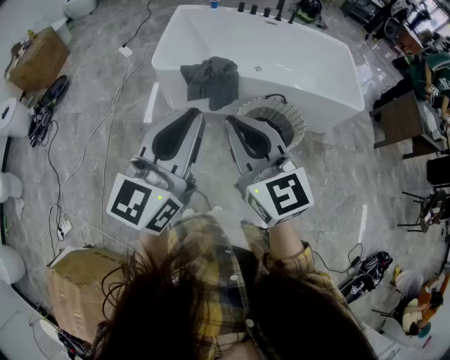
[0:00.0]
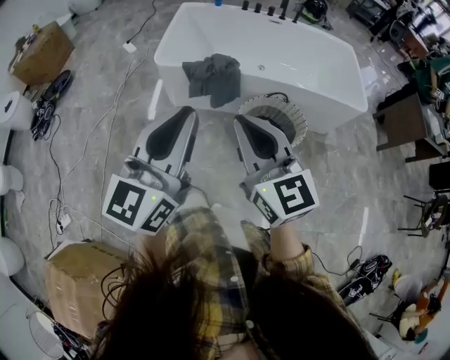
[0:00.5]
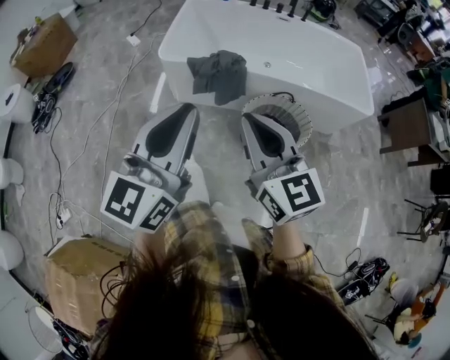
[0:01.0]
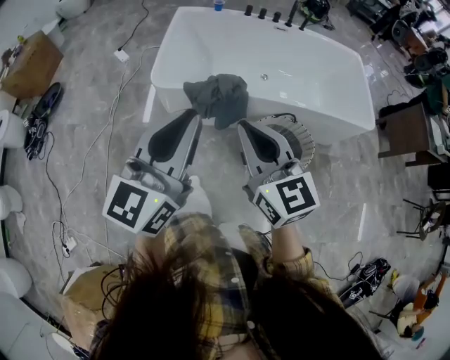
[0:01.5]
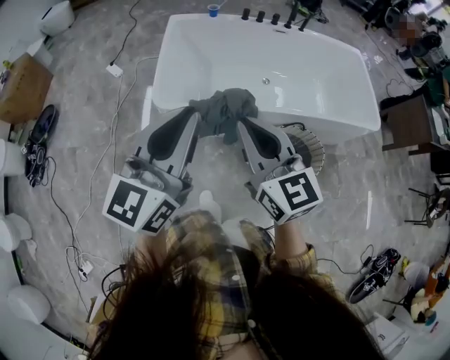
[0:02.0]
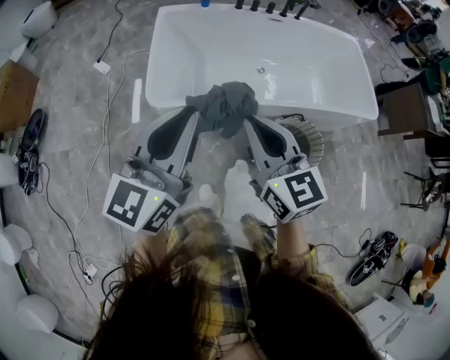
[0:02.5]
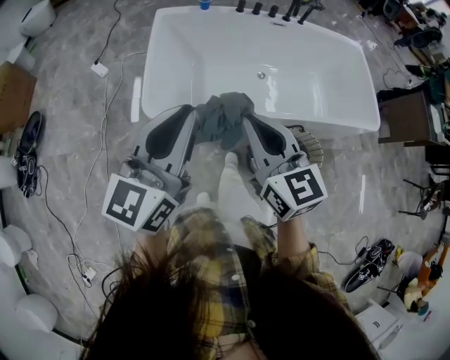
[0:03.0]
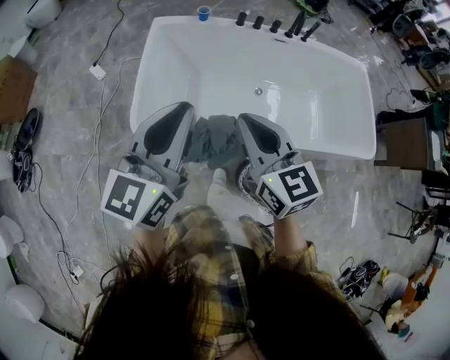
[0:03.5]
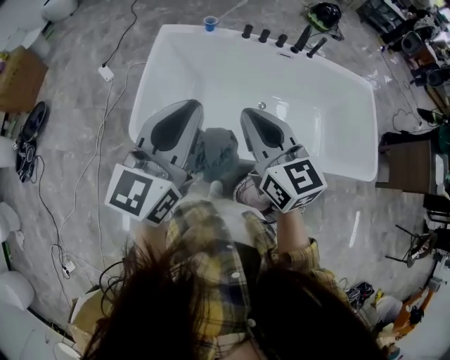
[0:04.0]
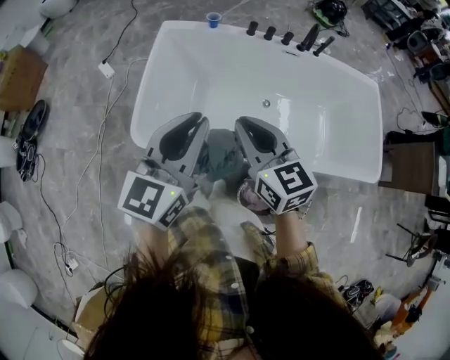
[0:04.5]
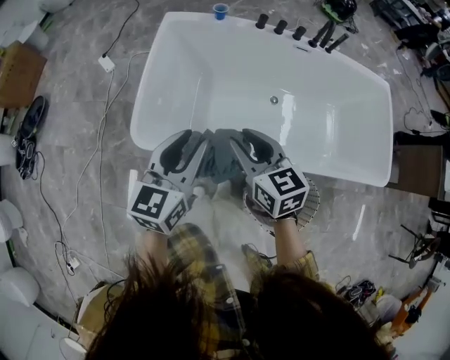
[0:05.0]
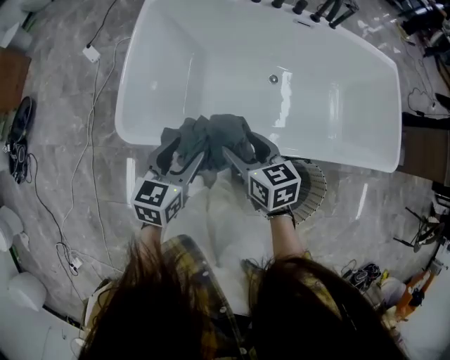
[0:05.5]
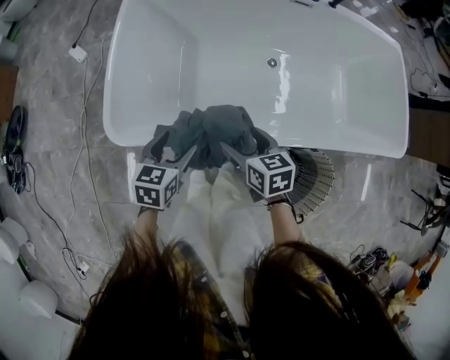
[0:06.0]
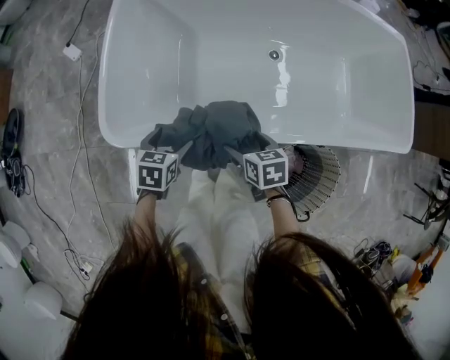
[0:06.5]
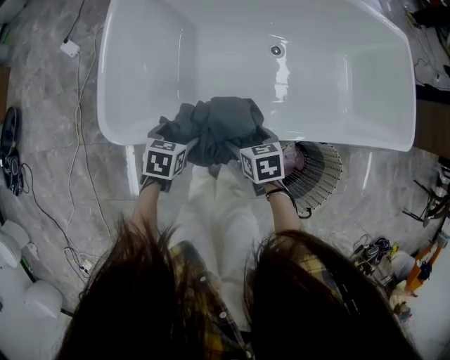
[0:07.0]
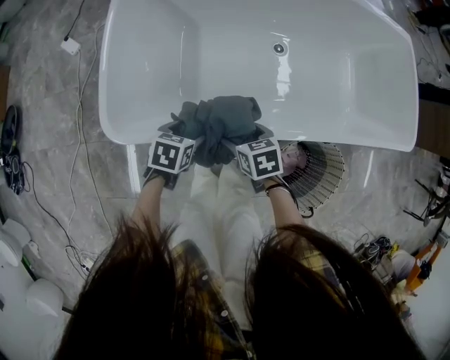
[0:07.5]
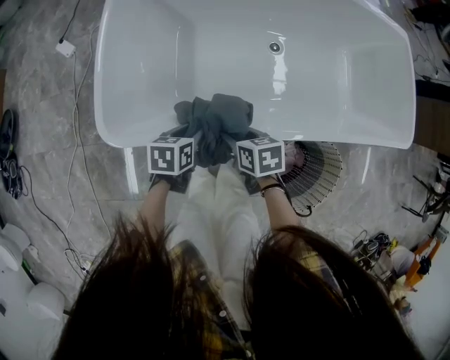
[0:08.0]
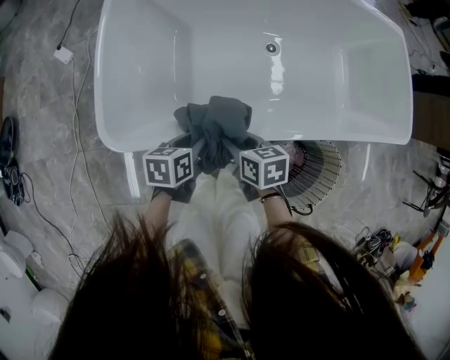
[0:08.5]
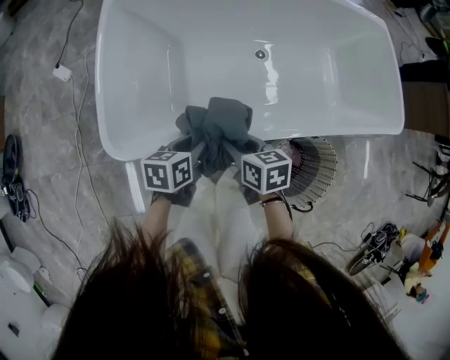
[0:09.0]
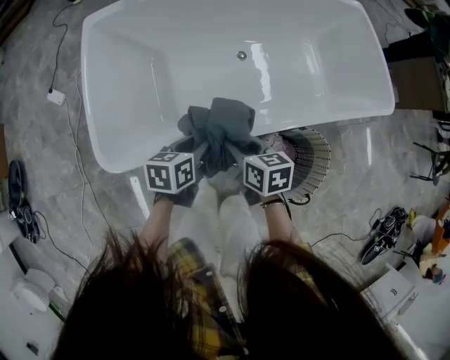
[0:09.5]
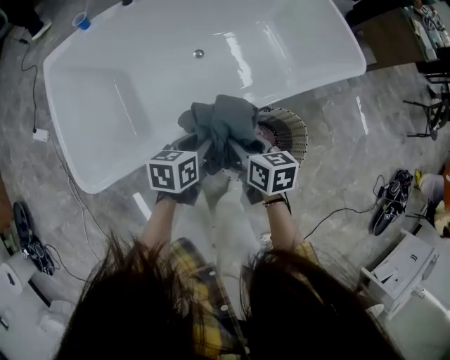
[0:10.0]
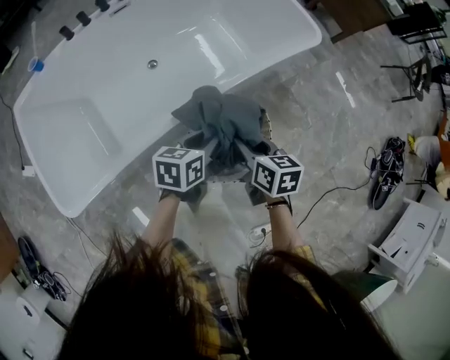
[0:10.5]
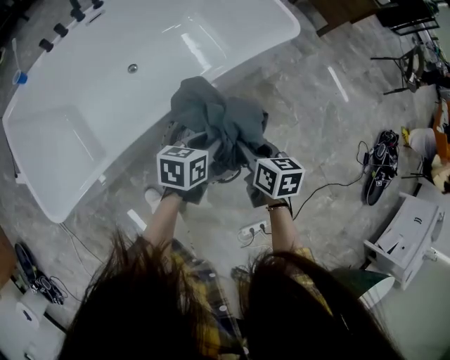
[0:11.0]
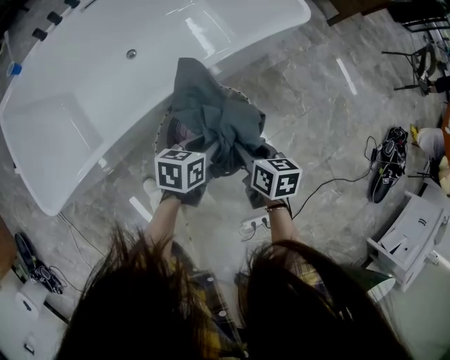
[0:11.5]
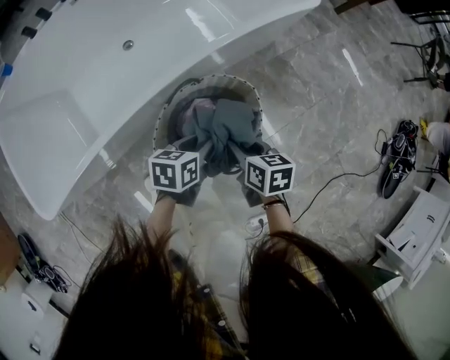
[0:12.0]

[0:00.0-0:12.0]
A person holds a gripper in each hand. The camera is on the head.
0:00.0 to 0:02.0: Both grippers move forward, roughly 30 cm.
0:02.0 to 0:04.0: The grippers both shift forward by approximately 25 cm.
0:04.0 to 0:06.0: Both grippers move downward, roughly 40 cm. The left gripper tilts its fingers roughly 50 degrees downward, and opens up. Meanwhile the right gripper tips its fingers downward by about 30 degrees, and opens up.
0:06.0 to 0:08.0: Both grippers move downward, about 10 cm. The right gripper closes up; the left gripper turns by approximately 20 degrees, and closes up.
0:08.0 to 0:10.0: The right gripper changes place by about 25 cm, and rotates approximately 30 degrees. The left gripper shifts by about 25 cm, and rotates some 30 degrees.
0:10.0 to 0:12.0: Both grippers move to the right and downward, some 30 cm.

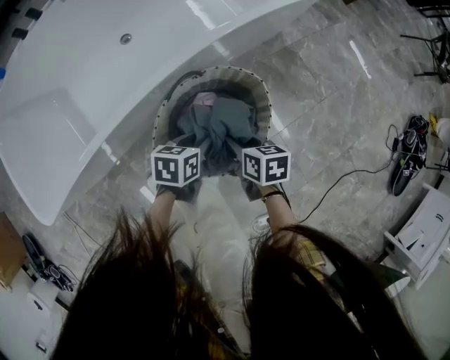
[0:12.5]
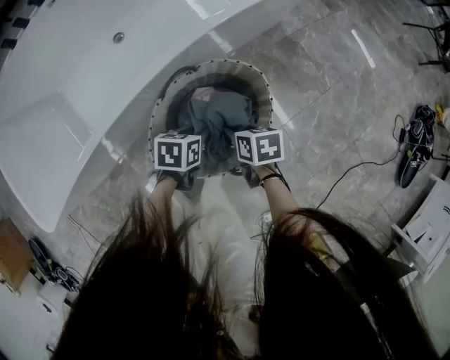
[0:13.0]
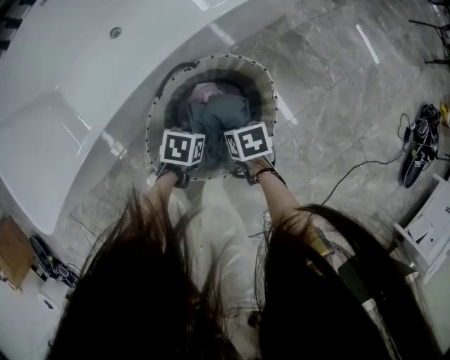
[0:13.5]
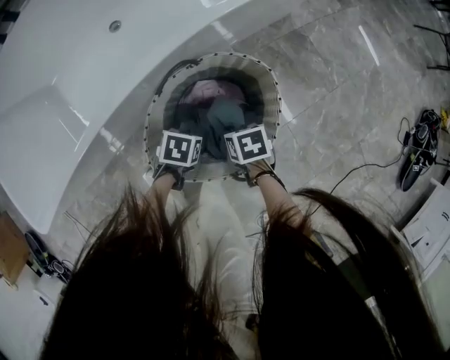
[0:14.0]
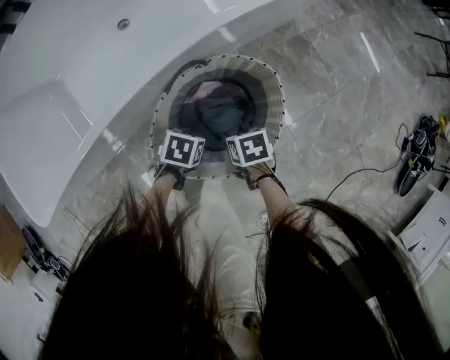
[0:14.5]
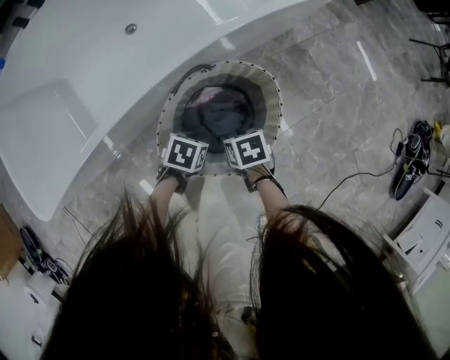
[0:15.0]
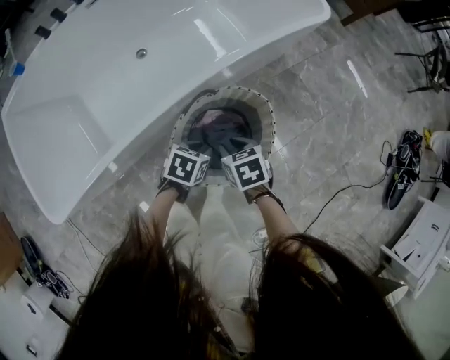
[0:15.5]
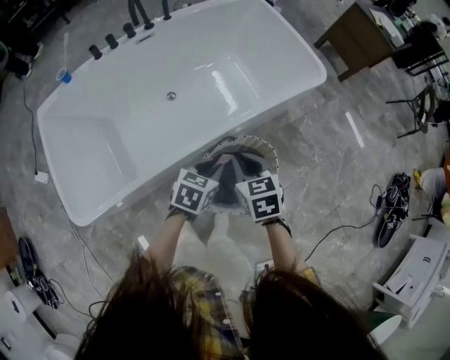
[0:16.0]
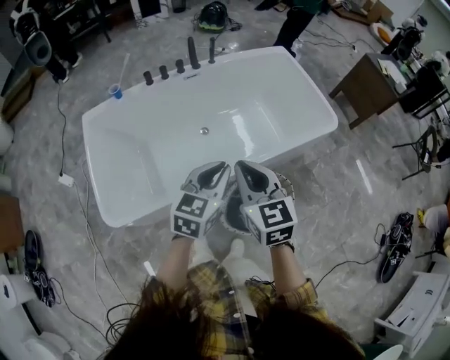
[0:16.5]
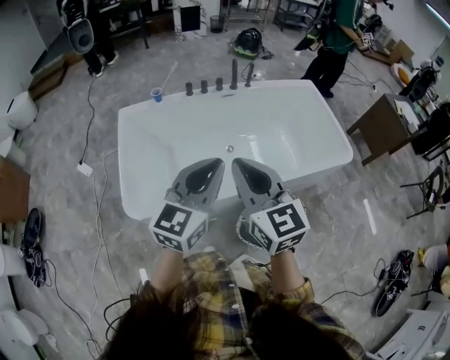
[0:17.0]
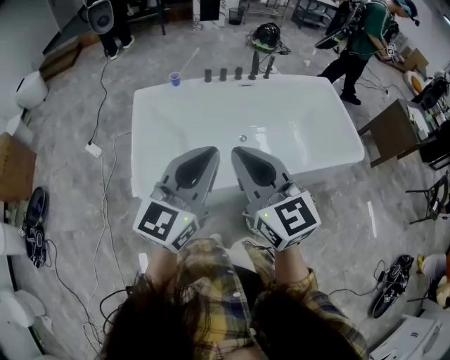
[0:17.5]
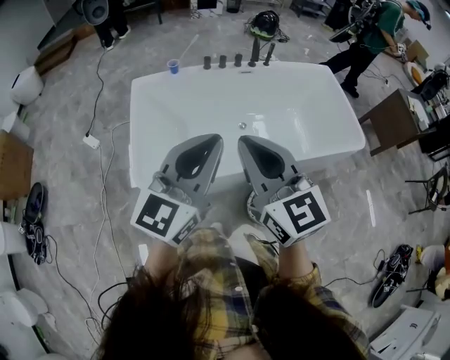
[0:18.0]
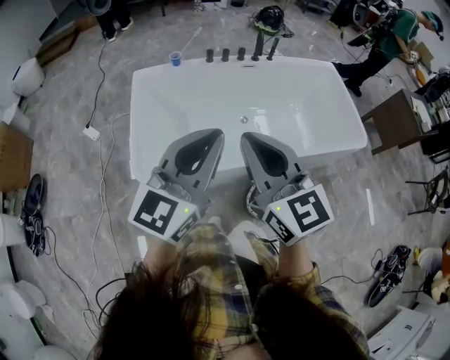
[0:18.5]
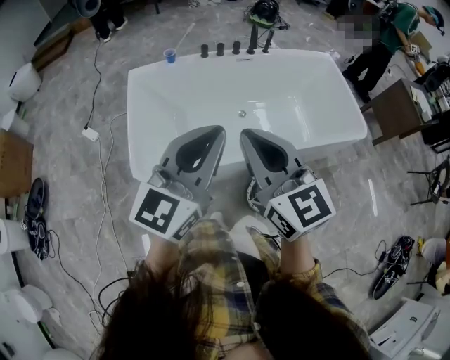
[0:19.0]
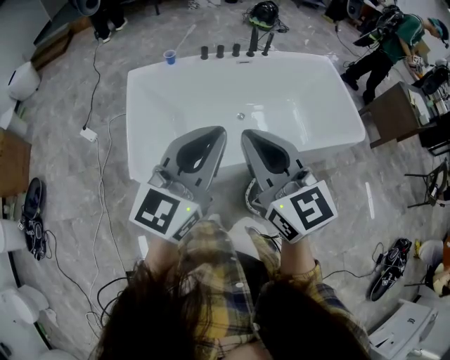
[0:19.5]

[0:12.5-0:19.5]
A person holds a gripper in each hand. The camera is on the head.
0:12.5 to 0:14.5: The two grippers go about 10 cm downward. The right gripper turns by roughly 20 degrees. The left gripper rotates some 20 degrees.
0:14.5 to 0:16.0: Both grippers travel together upward, about 35 cm. The right gripper changes its angle by some 40 degrees. Meanwhile the left gripper swivels about 30 degrees.
0:16.0 to 0:17.5: The two grippers go approximately 40 cm upward. The left gripper angles its fingers upward, by some 50 degrees. The right gripper angles its fingers upward, by roughly 40 degrees.
0:17.5 to 0:19.5: The grippers stay close to where they were, moving slightly.

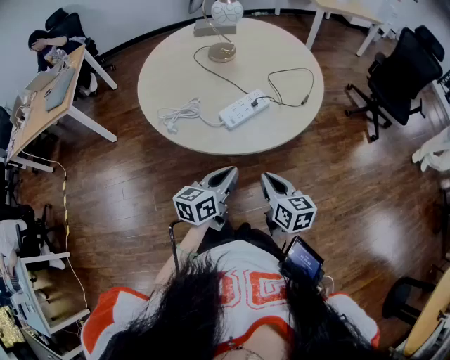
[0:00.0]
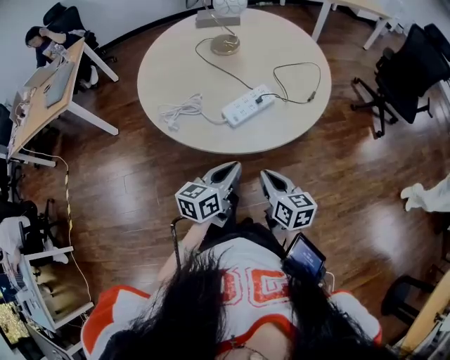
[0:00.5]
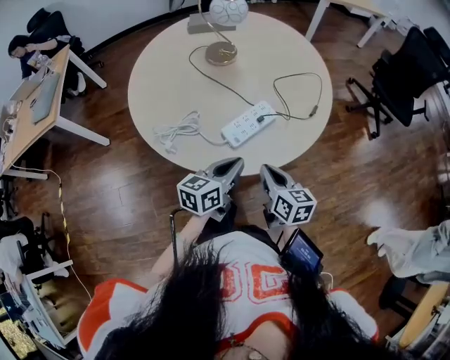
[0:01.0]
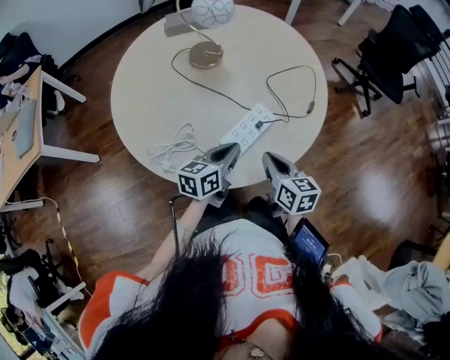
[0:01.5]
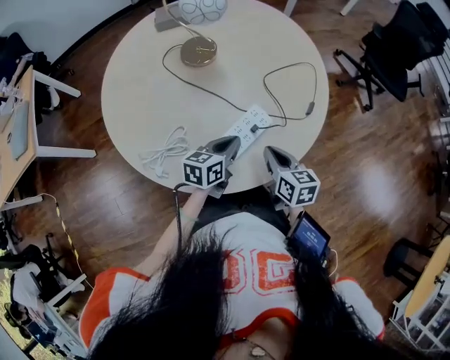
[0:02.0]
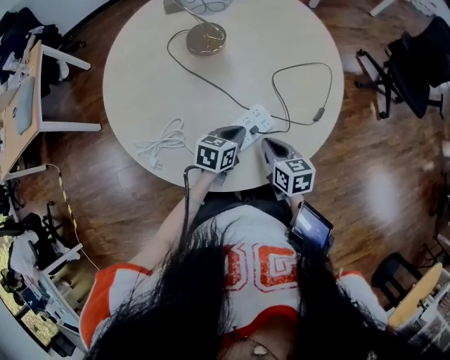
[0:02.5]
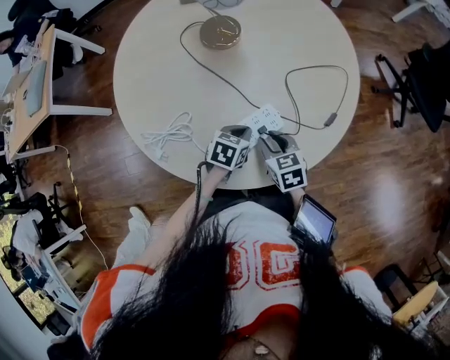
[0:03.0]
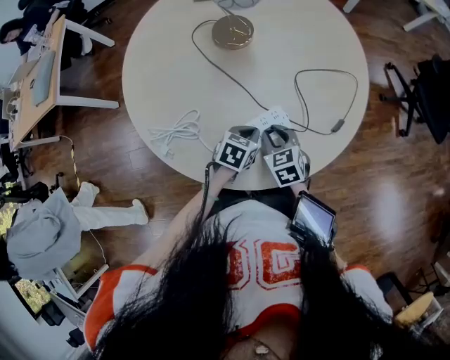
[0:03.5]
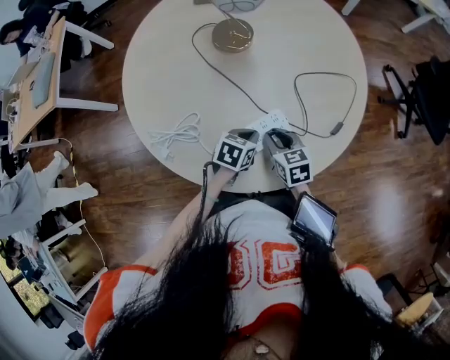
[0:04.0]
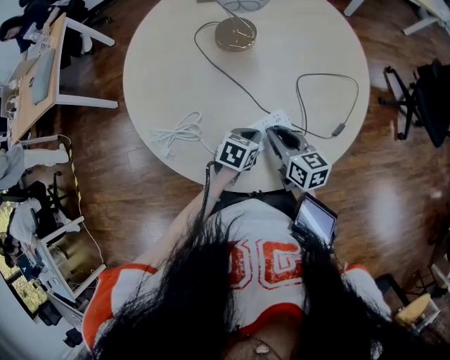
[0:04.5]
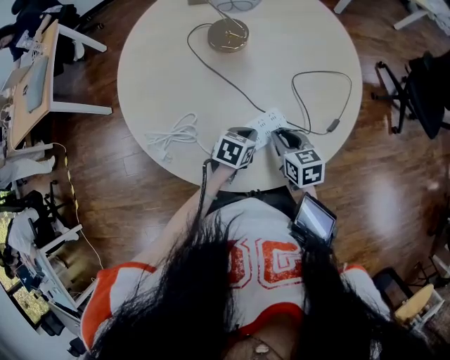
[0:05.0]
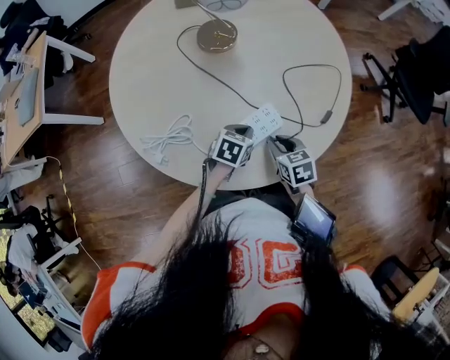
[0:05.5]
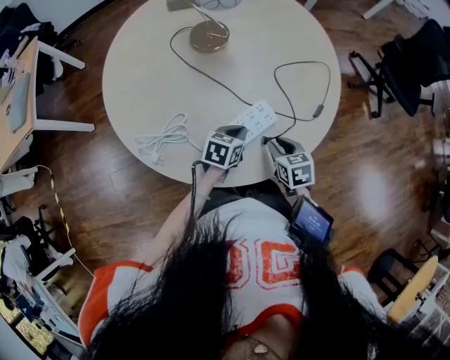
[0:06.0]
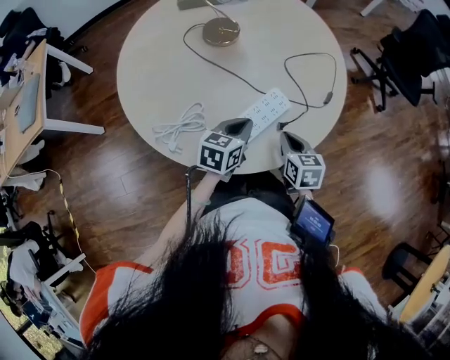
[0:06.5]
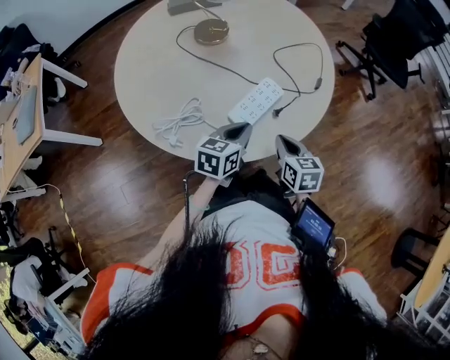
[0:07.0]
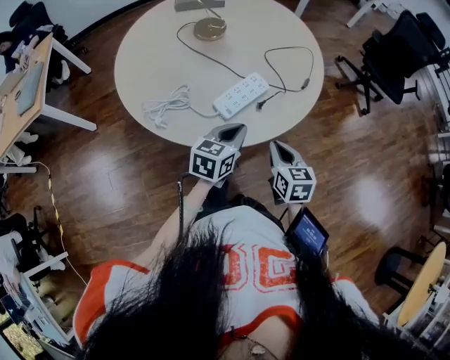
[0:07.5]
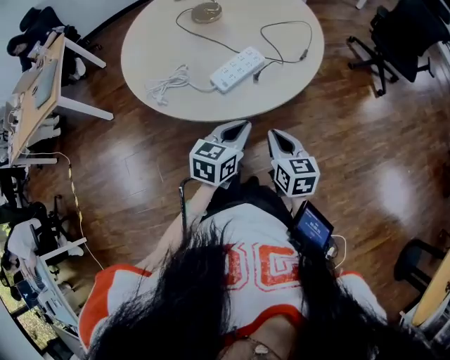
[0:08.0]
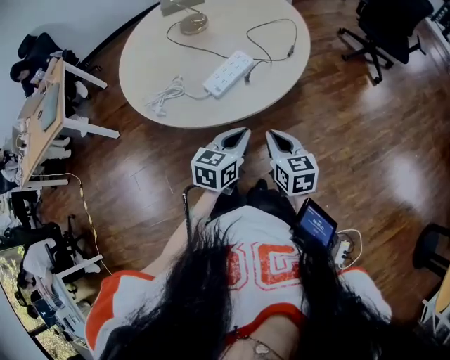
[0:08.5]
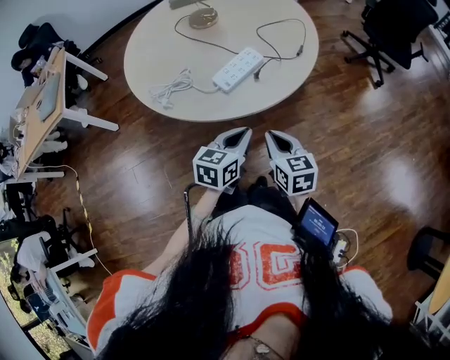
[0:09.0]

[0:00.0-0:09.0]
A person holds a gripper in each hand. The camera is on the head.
0:00.0 to 0:02.0: The two grippers go approximately 25 cm forward.
0:02.0 to 0:04.5: The right gripper heads forward, covering roughly 10 cm, and turns by about 20 degrees. Meanwhile the left gripper moves downward, about 10 cm, and turns by about 30 degrees.
0:04.5 to 0:07.0: The right gripper shifts roughly 15 cm backward, and turns by approximately 30 degrees, while the left gripper travels upward and backward by approximately 15 cm, and turns by approximately 30 degrees.
0:07.0 to 0:09.0: The left gripper shifts some 20 cm backward and to the right; the right gripper is displaced backward by about 15 cm.
